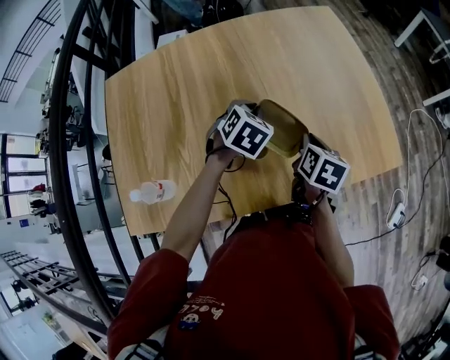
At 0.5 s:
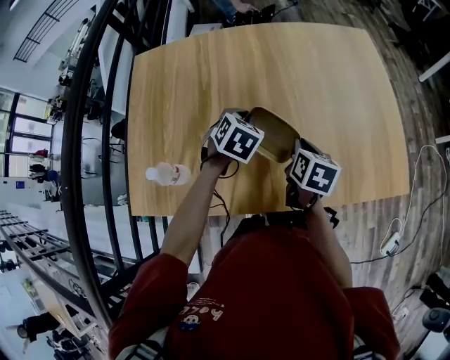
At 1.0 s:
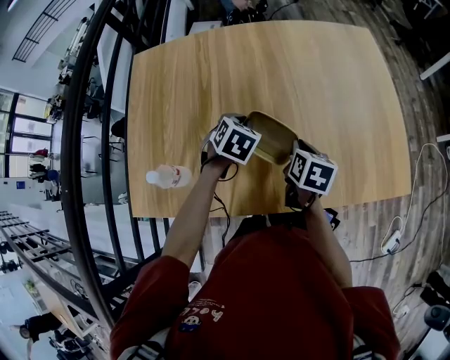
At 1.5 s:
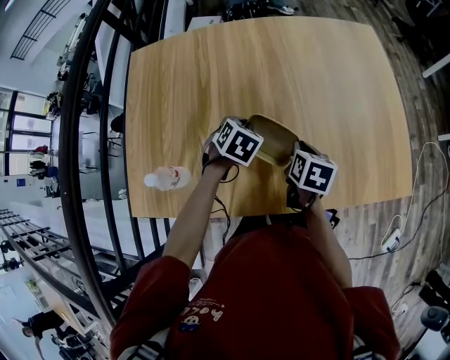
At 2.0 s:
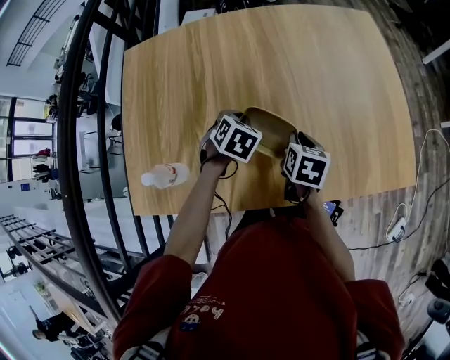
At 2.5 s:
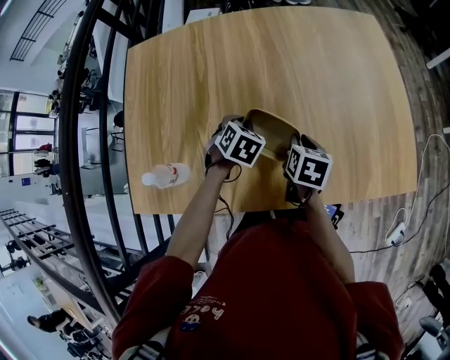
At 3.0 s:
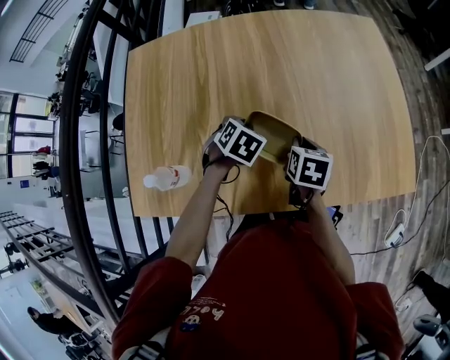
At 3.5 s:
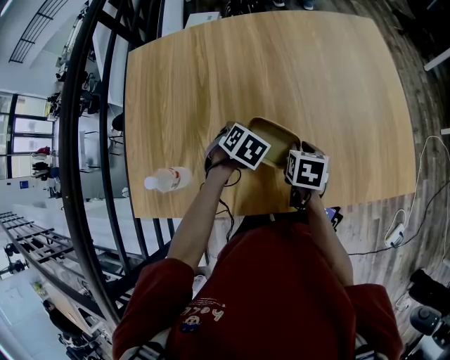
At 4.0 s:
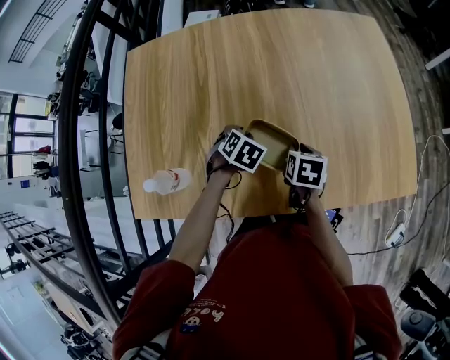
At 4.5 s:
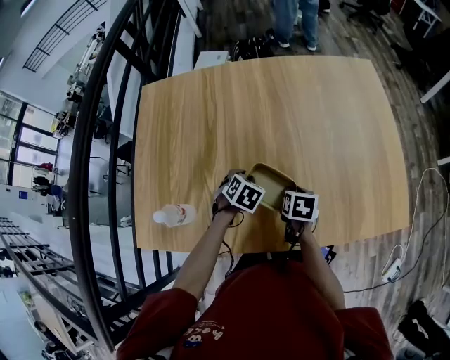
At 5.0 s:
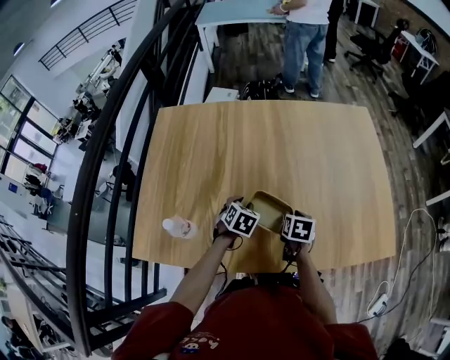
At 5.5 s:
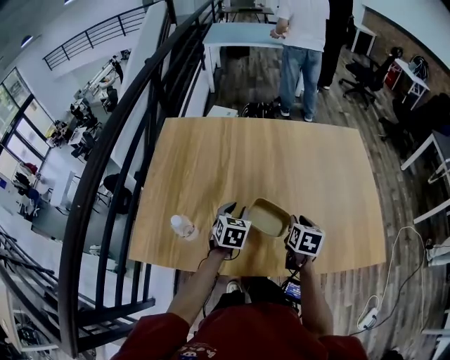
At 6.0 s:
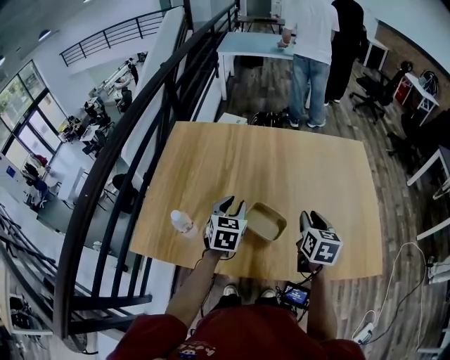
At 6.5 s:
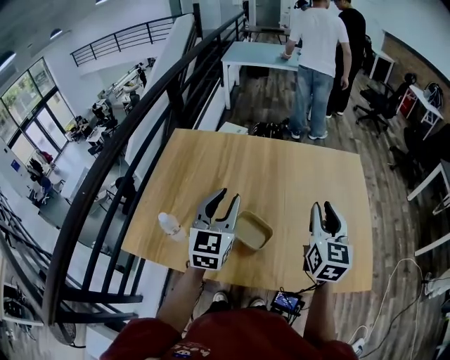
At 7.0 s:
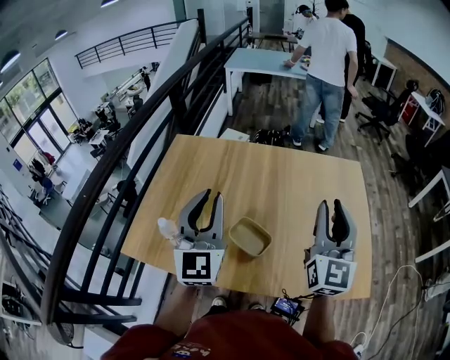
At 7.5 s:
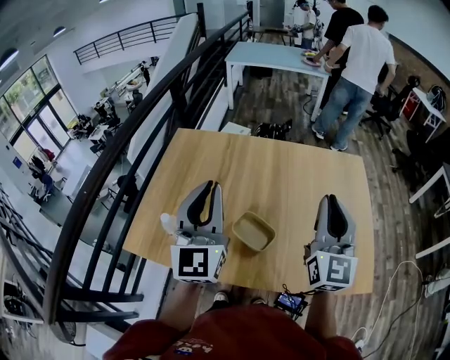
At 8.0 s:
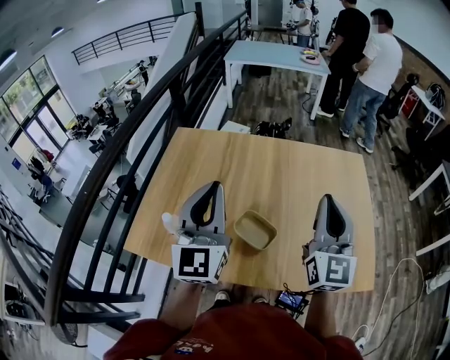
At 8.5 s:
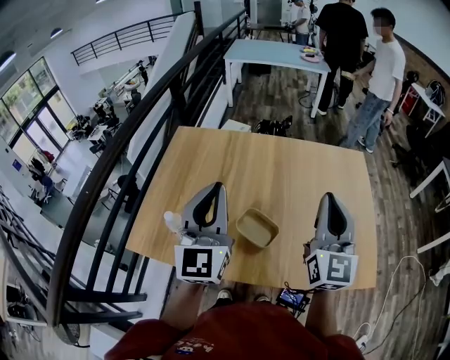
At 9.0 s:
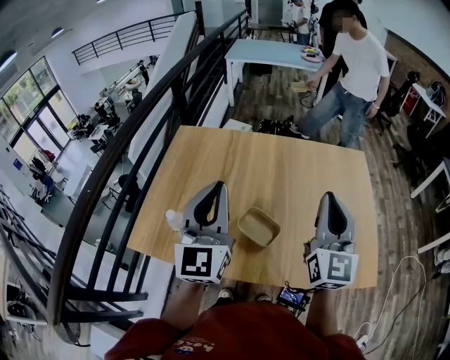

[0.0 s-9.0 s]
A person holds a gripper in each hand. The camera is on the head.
0.0 to 2.0 s: The right gripper goes some 10 cm to the left. The left gripper moves to the left and downward, roughly 15 cm.
2.0 to 4.5 s: The two grippers go some 5 cm downward.
4.5 to 7.0 s: The grippers both shift upward by about 40 cm. The left gripper tips its fingers upward by roughly 80 degrees. The right gripper angles its fingers upward, by about 70 degrees.
7.0 to 9.0 s: The right gripper closes its fingers.

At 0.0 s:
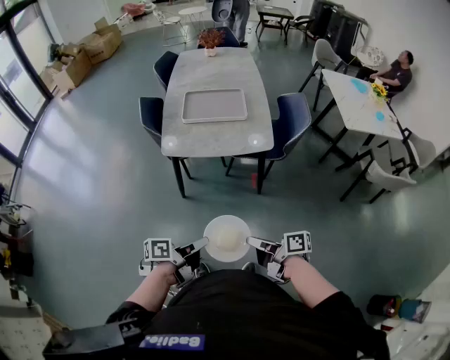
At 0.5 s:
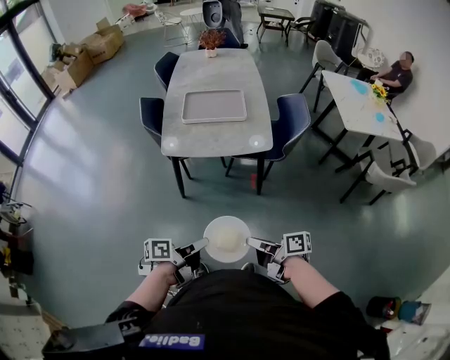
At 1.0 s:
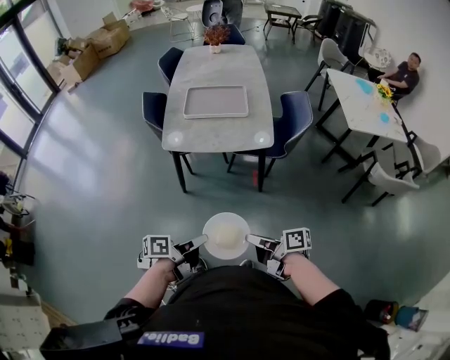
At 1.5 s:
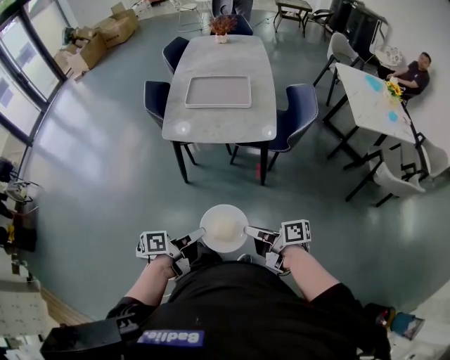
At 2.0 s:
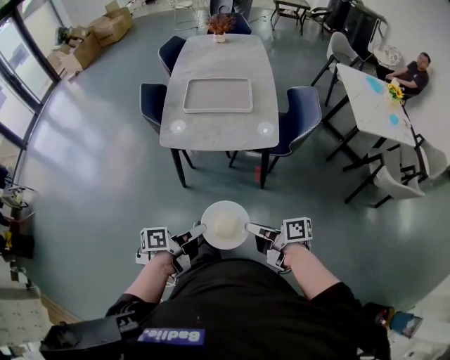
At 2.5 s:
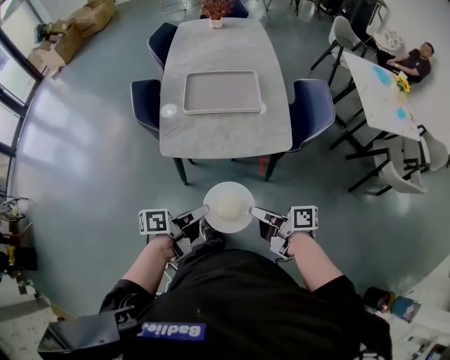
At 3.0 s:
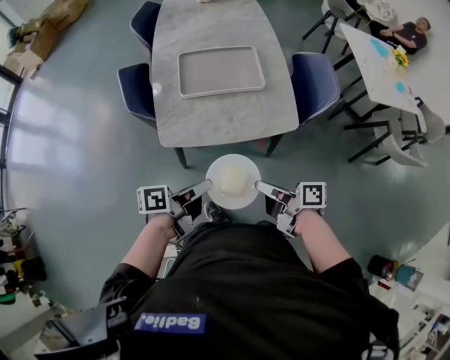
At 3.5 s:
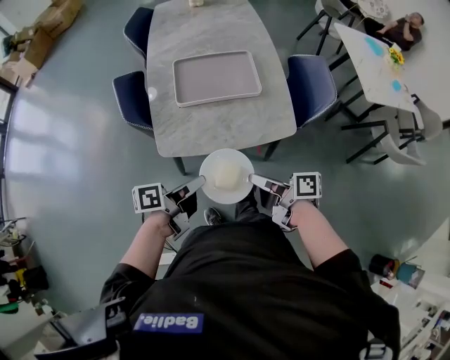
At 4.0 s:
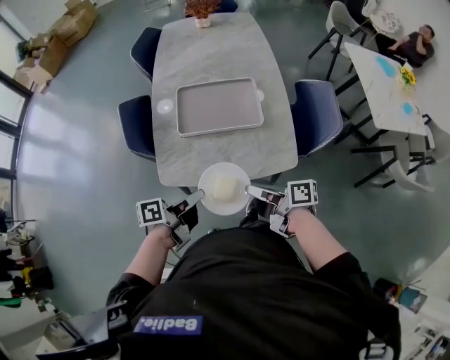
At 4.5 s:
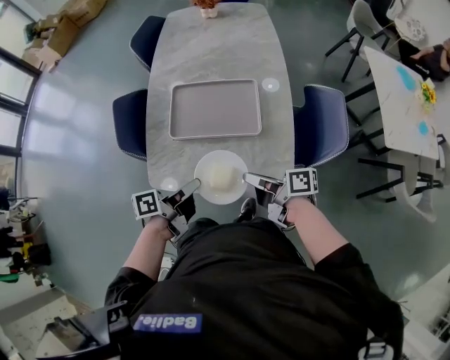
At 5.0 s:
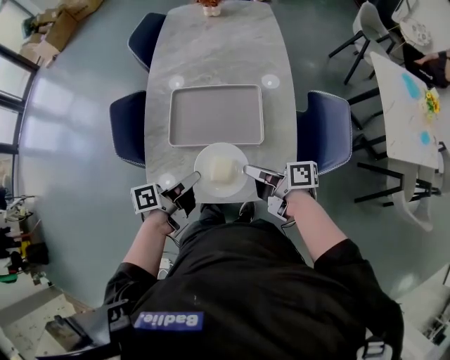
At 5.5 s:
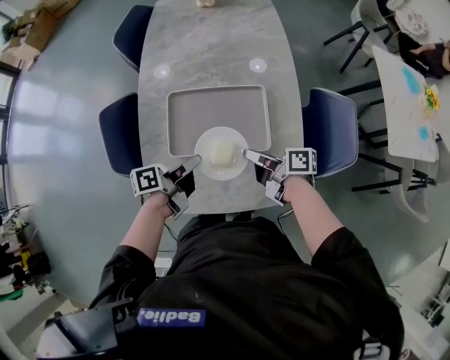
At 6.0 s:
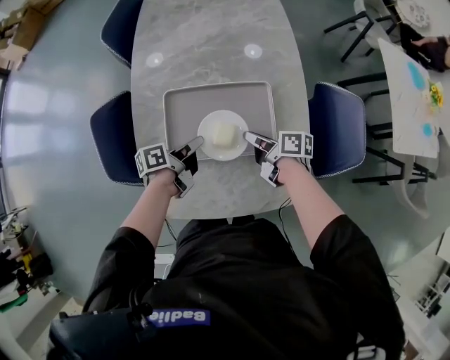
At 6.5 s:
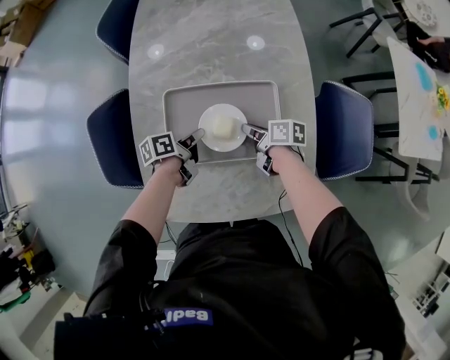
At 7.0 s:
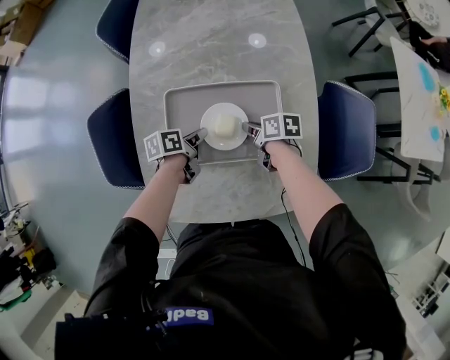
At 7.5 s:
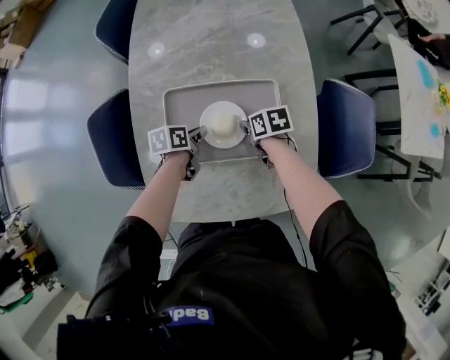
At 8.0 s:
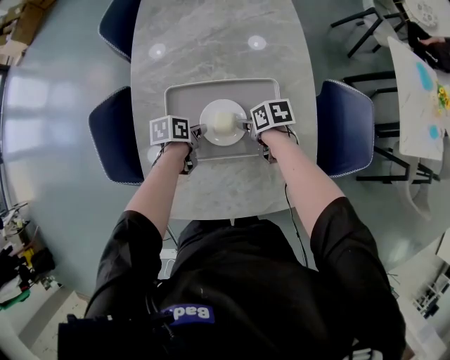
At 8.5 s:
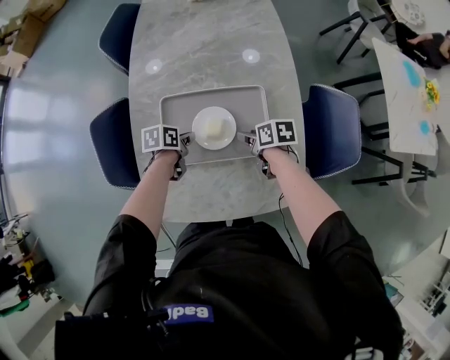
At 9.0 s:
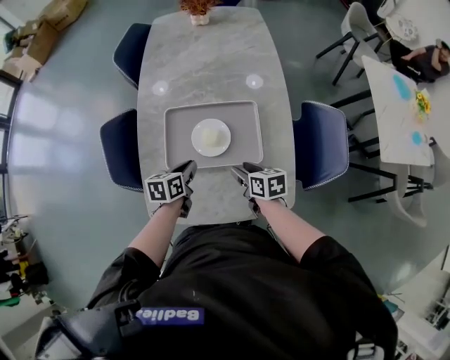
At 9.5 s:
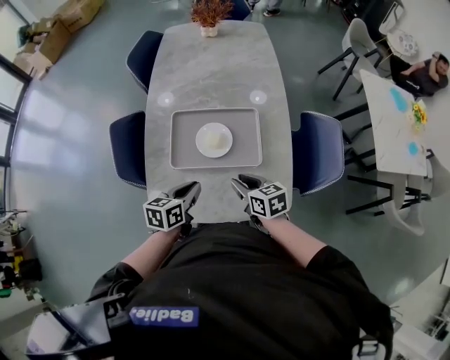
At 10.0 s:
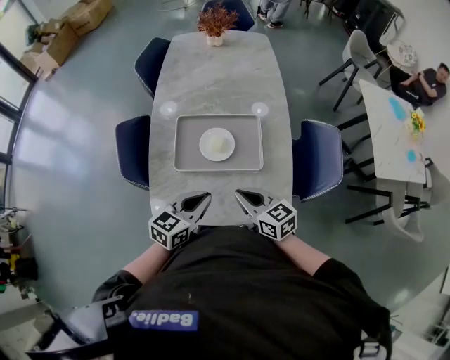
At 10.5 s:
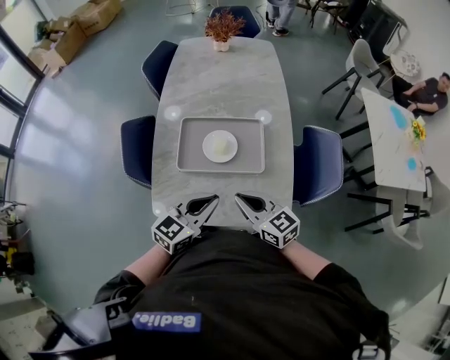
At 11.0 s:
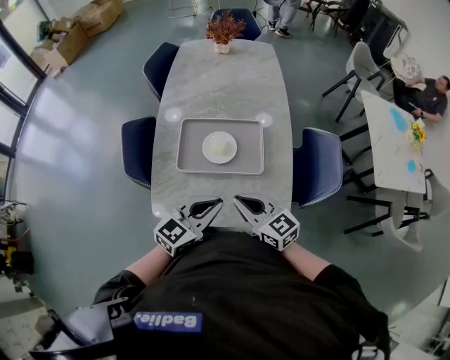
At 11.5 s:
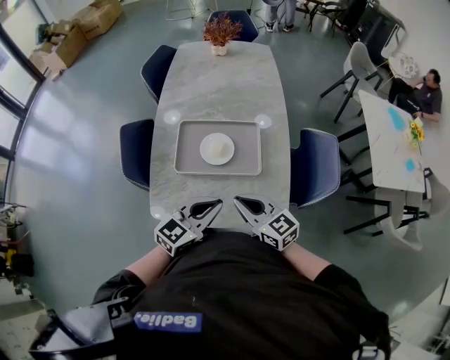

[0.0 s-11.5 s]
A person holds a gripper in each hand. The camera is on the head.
0.0 to 2.0 s: The right gripper moves approximately 5 cm.
2.0 to 4.0 s: The right gripper moves approximately 35 cm.
4.0 to 6.0 s: The right gripper shifts by roughly 35 cm.
6.0 to 7.5 s: The right gripper shifts approximately 10 cm downward, and tips its fingers downward by approximately 30 degrees.
7.5 to 9.5 s: The right gripper moves about 25 cm, and turns by about 30 degrees.
9.5 to 11.5 s: The right gripper heads upward, covering some 10 cm, changes its angle by roughly 30 degrees, and closes its fingers.

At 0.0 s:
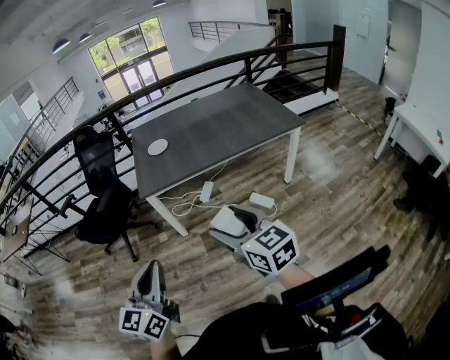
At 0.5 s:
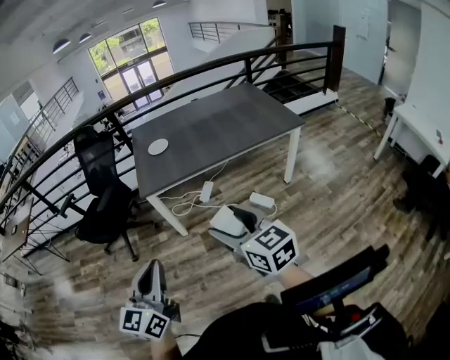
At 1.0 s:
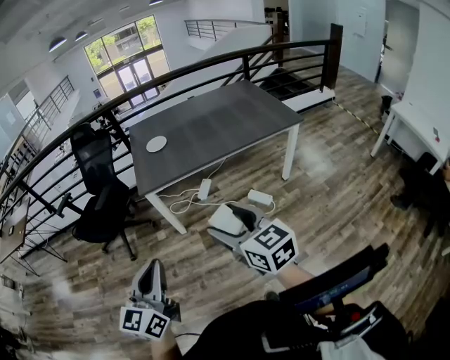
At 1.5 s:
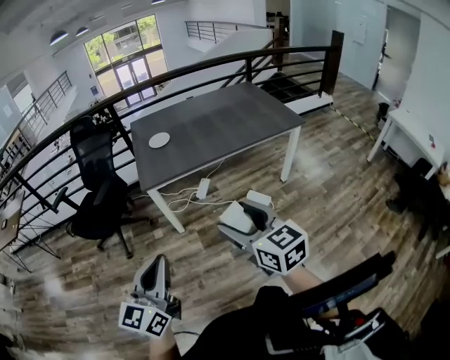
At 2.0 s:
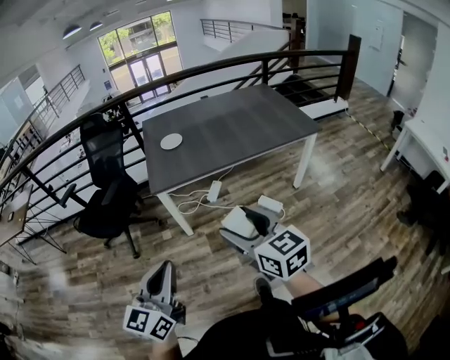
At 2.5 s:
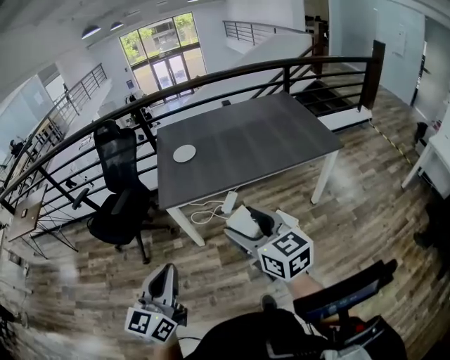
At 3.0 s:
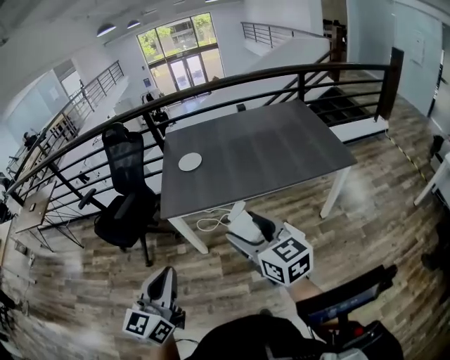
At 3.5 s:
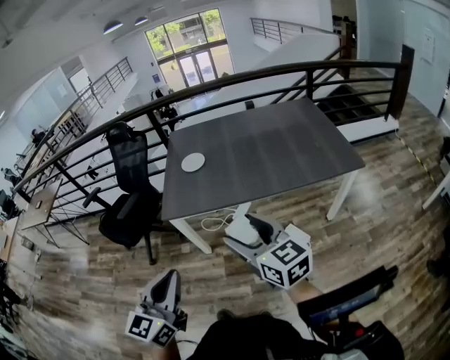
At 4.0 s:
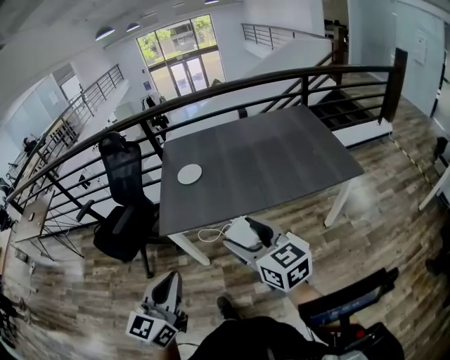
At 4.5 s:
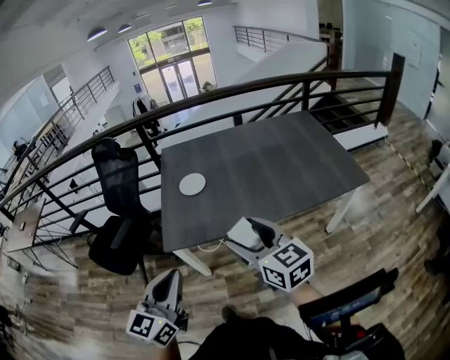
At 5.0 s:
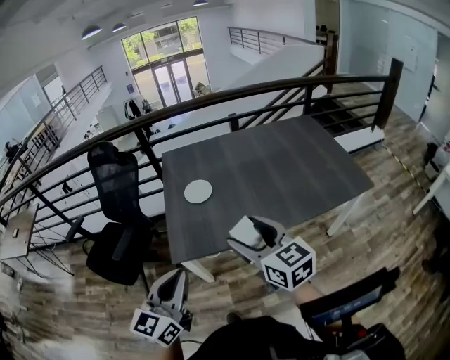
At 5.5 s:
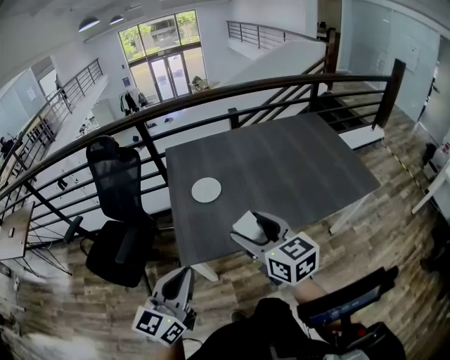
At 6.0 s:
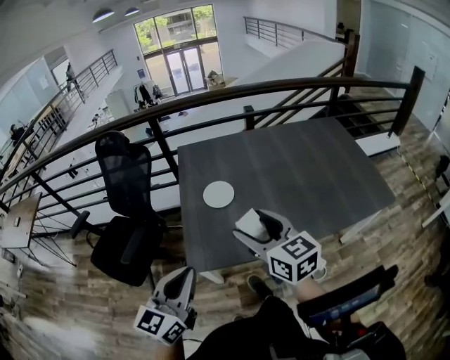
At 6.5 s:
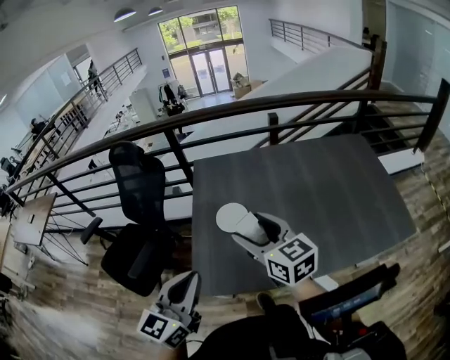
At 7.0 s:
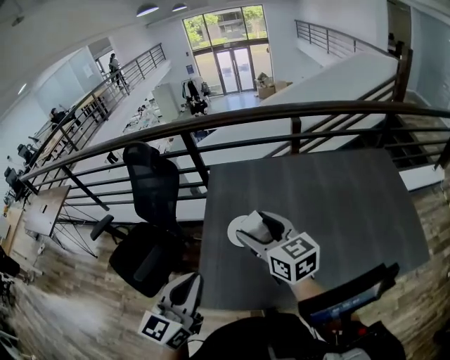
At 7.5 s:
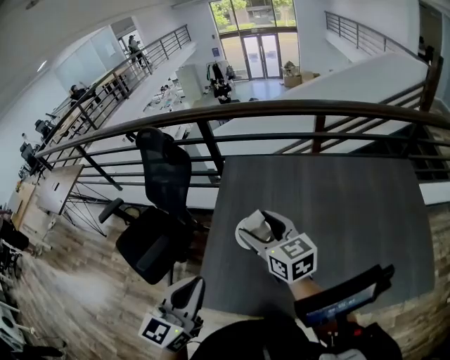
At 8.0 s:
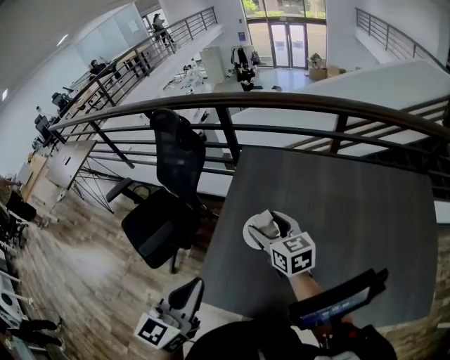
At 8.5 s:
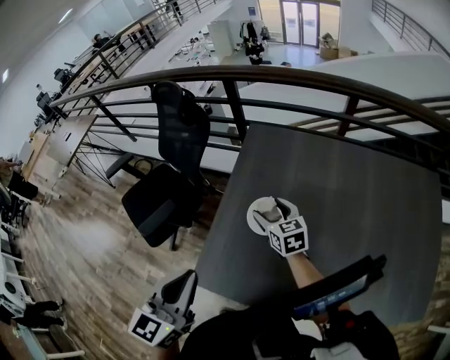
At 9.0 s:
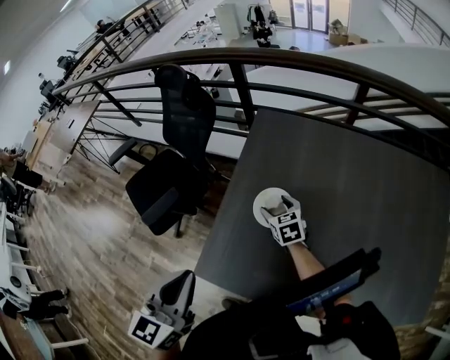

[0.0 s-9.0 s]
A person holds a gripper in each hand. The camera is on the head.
0.0 to 2.0 s: The right gripper moves to the left, approximately 5 cm, while the left gripper ends up approximately 5 cm from where it was.
2.0 to 4.5 s: Both grippers travel together forward, some 30 cm.
4.5 to 7.0 s: Both grippers travel together forward, some 35 cm.
7.0 to 9.0 s: The right gripper moves downward and forward, roughly 30 cm, and angles its fingers downward, by approximately 30 degrees, while the left gripper rotates some 20 degrees.
